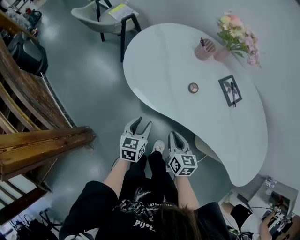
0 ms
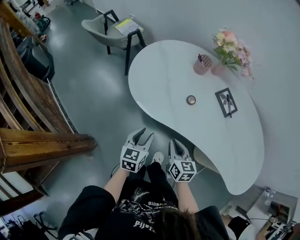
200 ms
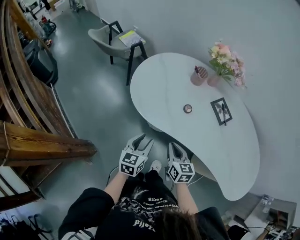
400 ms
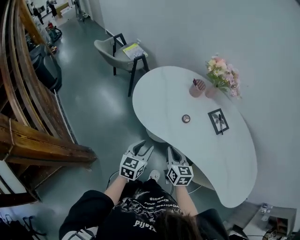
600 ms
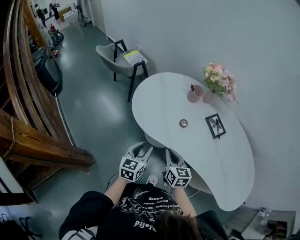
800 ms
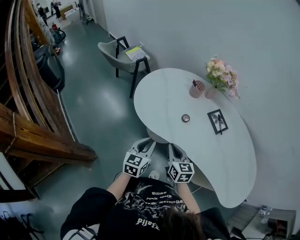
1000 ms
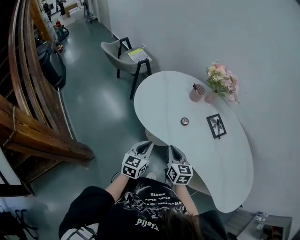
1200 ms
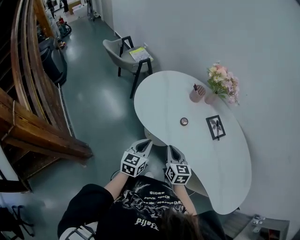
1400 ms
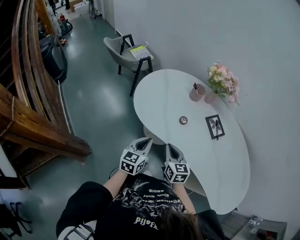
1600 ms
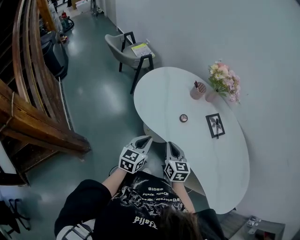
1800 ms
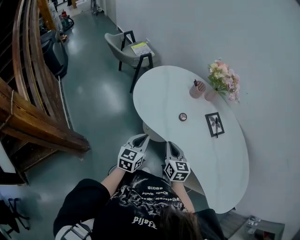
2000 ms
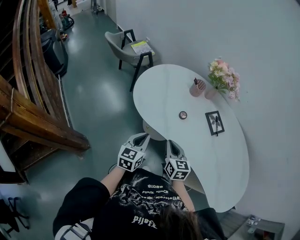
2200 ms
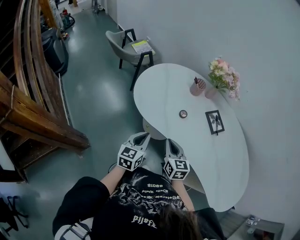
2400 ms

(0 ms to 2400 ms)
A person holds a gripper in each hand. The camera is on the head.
0 ms - 1200 ms: Both grippers move upward, some 10 cm. The left gripper closes.
1200 ms - 2400 ms: There are only small adjustments of the grippers.

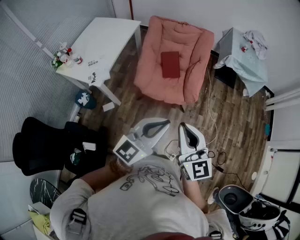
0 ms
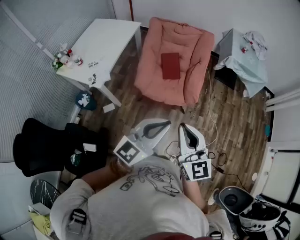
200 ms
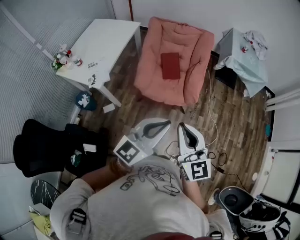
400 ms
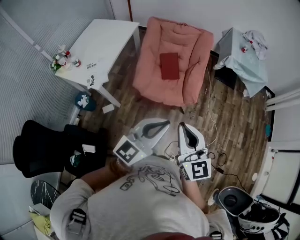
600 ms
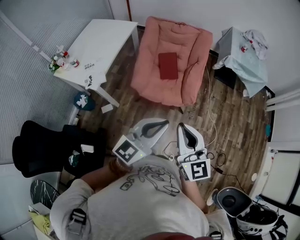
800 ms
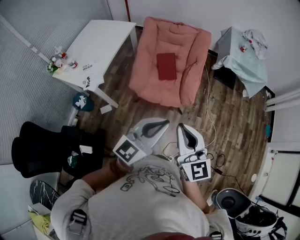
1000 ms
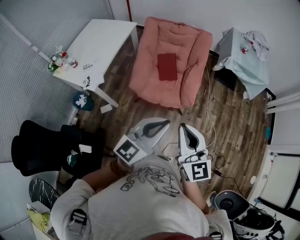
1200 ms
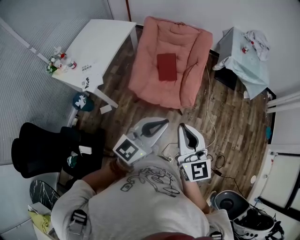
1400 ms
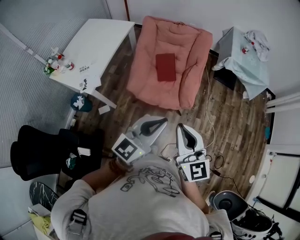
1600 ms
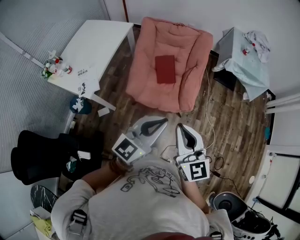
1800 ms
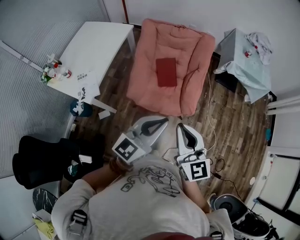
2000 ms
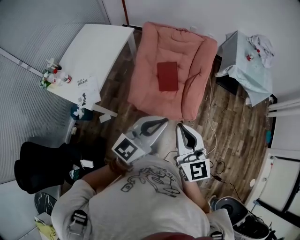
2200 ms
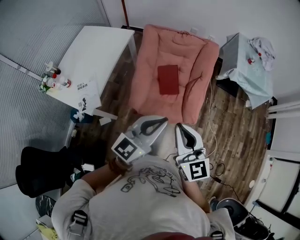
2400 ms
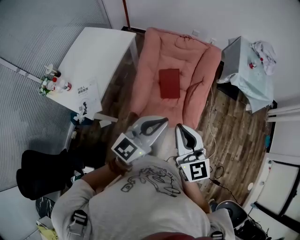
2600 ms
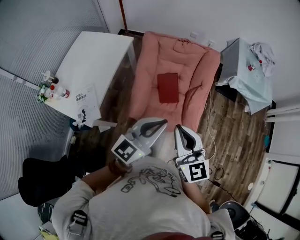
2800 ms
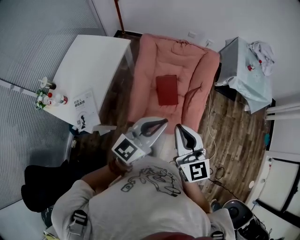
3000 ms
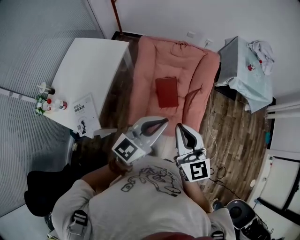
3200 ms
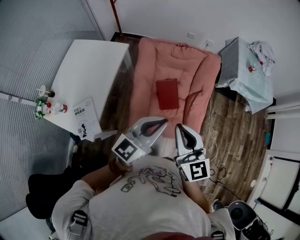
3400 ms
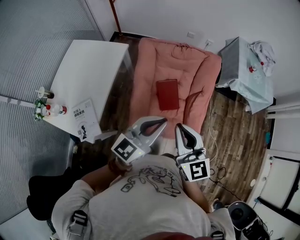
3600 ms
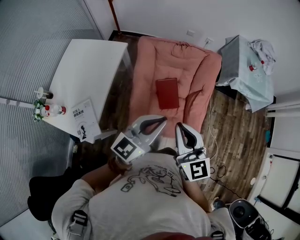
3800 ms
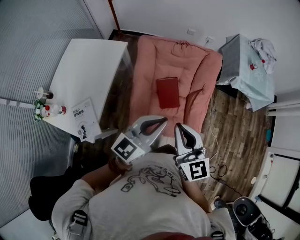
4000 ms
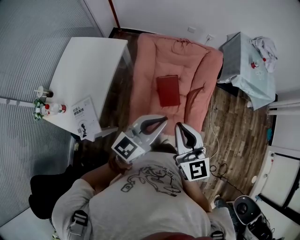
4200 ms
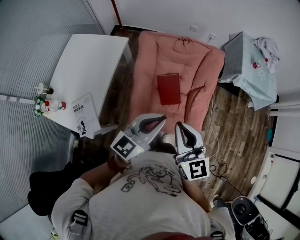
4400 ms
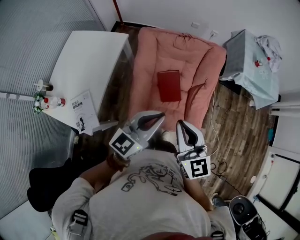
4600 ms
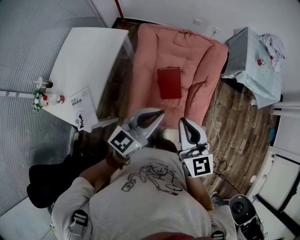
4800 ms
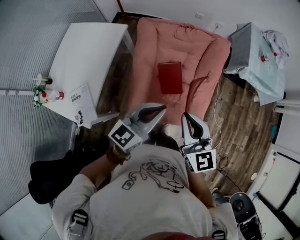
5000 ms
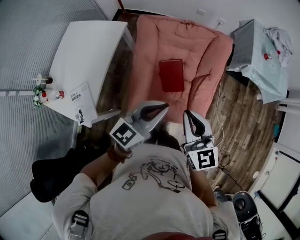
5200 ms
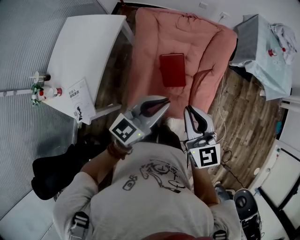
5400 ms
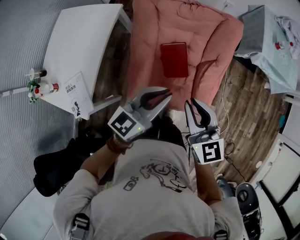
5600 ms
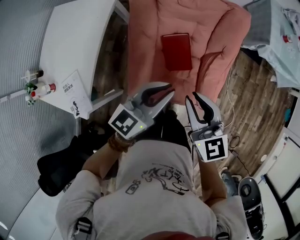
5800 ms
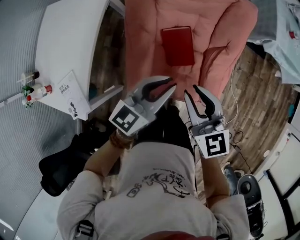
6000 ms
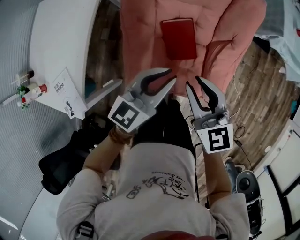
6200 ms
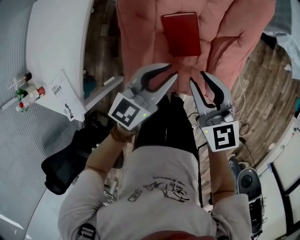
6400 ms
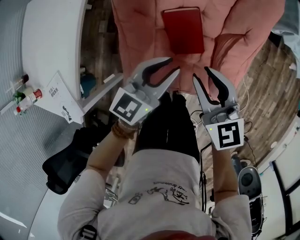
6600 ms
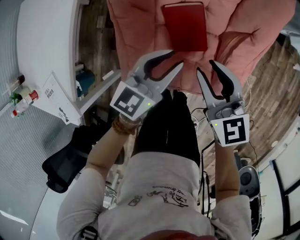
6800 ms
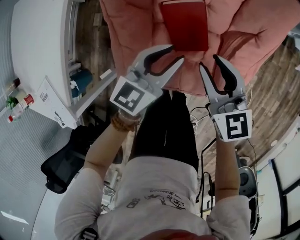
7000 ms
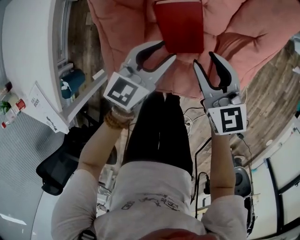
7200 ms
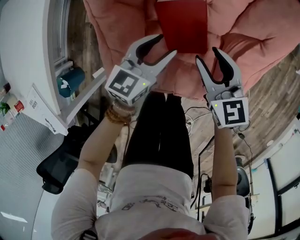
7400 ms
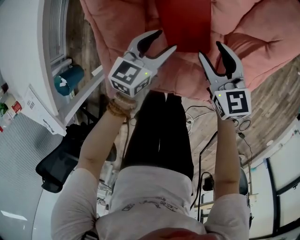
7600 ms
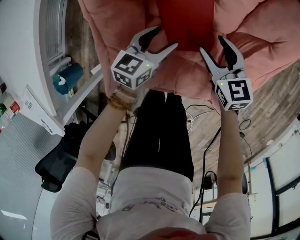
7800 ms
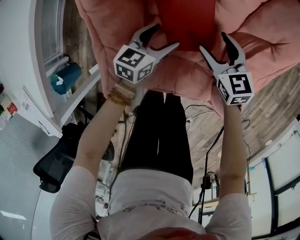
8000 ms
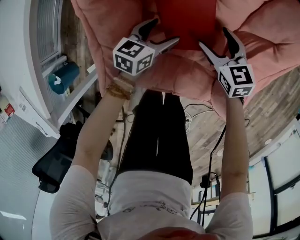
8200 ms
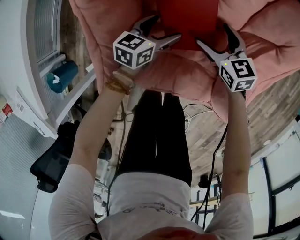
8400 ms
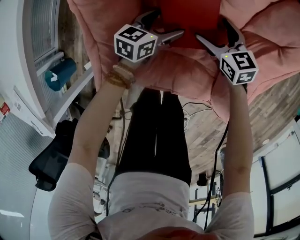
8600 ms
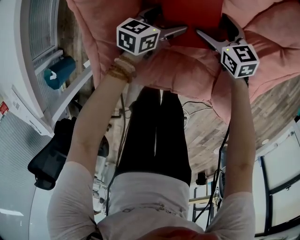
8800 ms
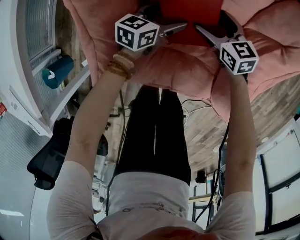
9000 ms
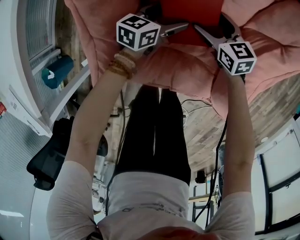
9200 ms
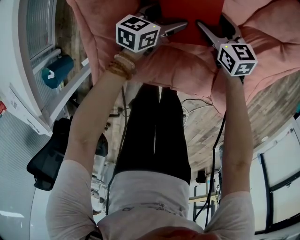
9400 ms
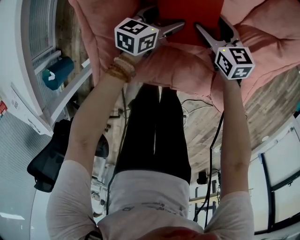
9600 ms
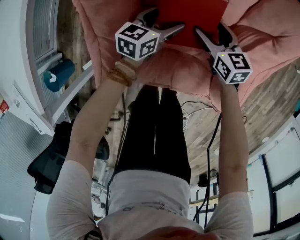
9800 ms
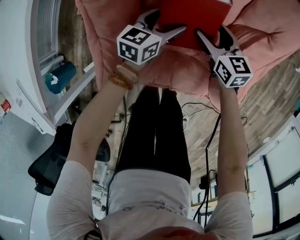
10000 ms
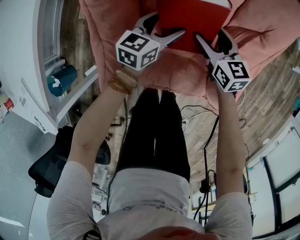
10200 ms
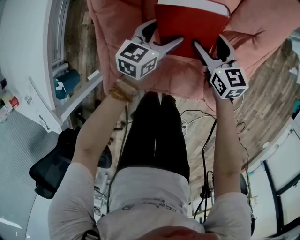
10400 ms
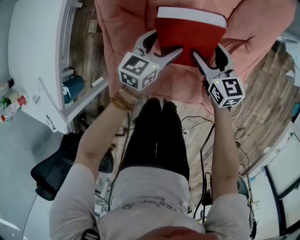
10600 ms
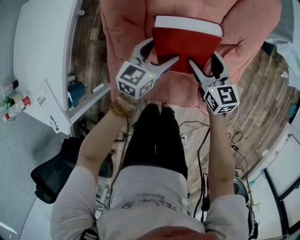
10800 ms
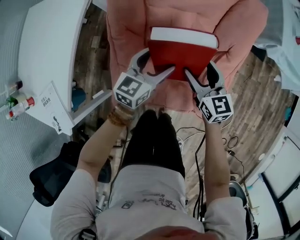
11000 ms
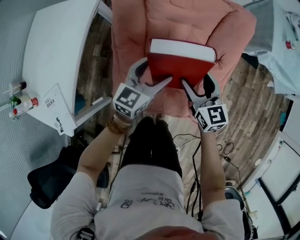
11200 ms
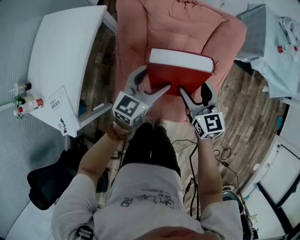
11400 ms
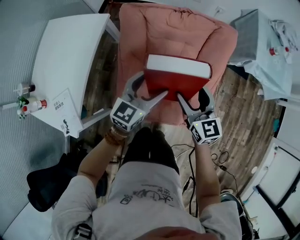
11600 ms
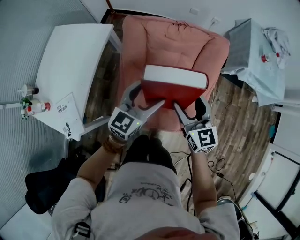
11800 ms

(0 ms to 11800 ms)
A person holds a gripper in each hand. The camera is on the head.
0 ms - 1400 ms: The two grippers go roughly 10 cm forward.
1400 ms - 3000 ms: Both grippers travel together forward and to the left, approximately 35 cm.
3000 ms - 4400 ms: Both grippers travel together forward, approximately 5 cm.
4400 ms - 6000 ms: The two grippers go some 25 cm downward and forward.
6000 ms - 7400 ms: The left gripper travels downward by approximately 35 cm. The right gripper is displaced downward and forward by approximately 35 cm.
7400 ms - 8800 ms: Both grippers travel together downward, approximately 20 cm. The right gripper opens its fingers; the left gripper opens up.
8800 ms - 10400 ms: The grippers both shift upward by roughly 15 cm.
10400 ms - 11800 ms: Both grippers travel together upward, about 40 cm. The left gripper turns by roughly 20 degrees.

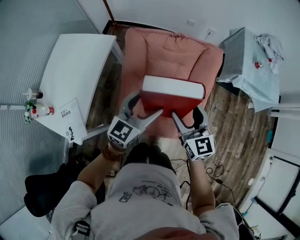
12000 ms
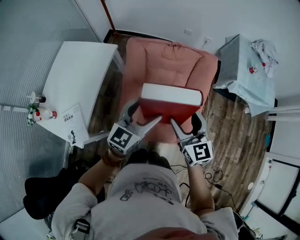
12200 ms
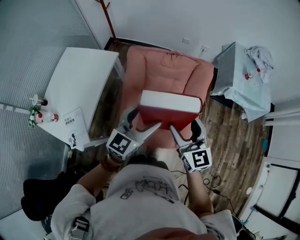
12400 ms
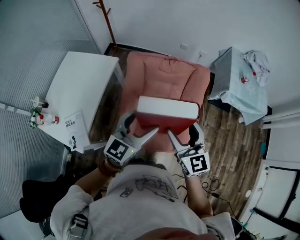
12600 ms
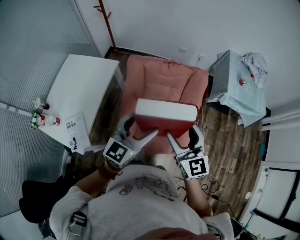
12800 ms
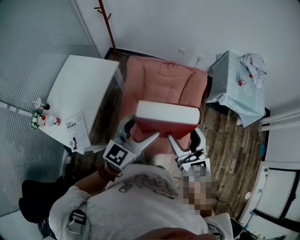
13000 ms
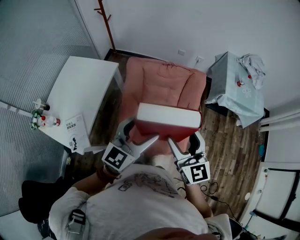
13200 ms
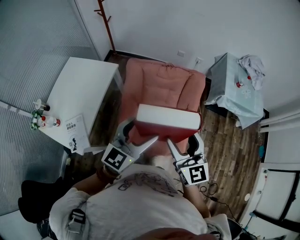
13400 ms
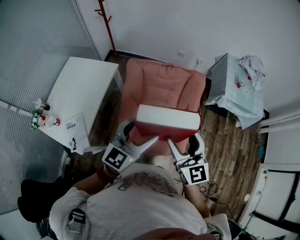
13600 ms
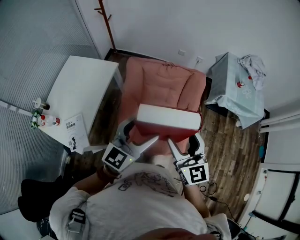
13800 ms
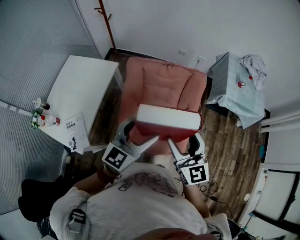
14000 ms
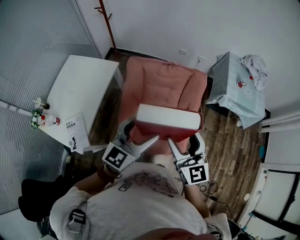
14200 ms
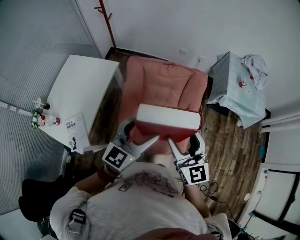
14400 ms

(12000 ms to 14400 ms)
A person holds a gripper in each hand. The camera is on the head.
12000 ms - 13200 ms: Both grippers move upward and backward, some 20 cm.
13200 ms - 14400 ms: The grippers make only small movements.

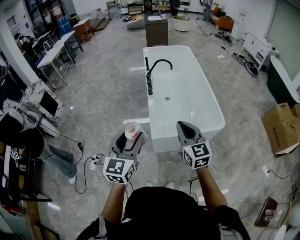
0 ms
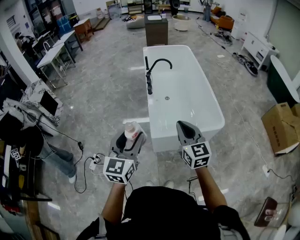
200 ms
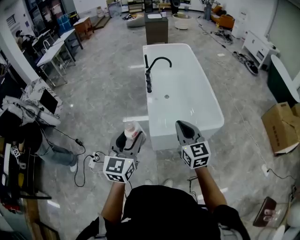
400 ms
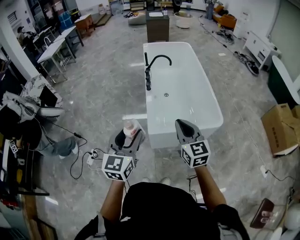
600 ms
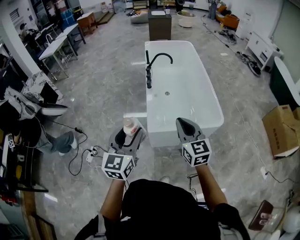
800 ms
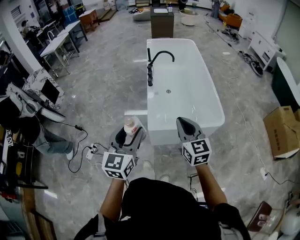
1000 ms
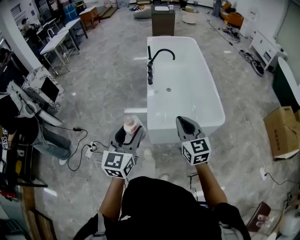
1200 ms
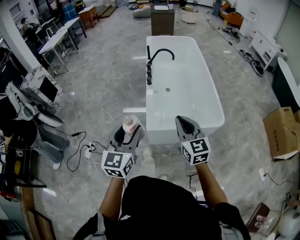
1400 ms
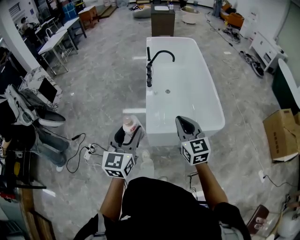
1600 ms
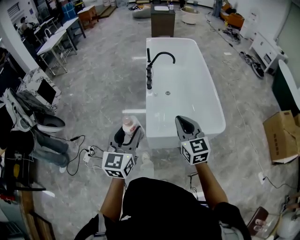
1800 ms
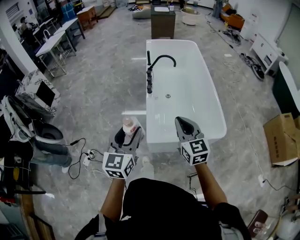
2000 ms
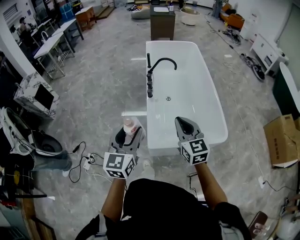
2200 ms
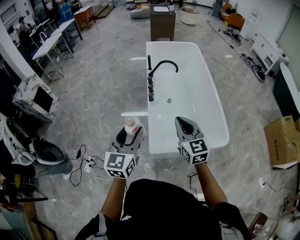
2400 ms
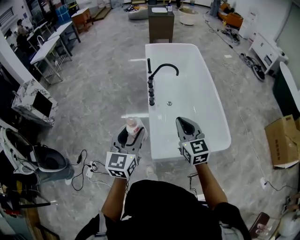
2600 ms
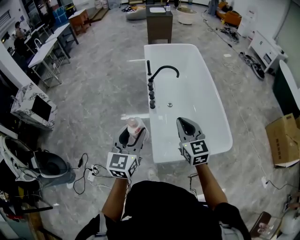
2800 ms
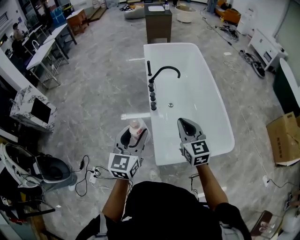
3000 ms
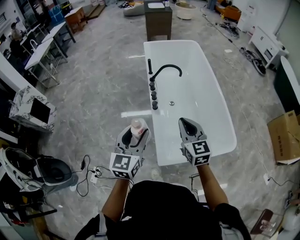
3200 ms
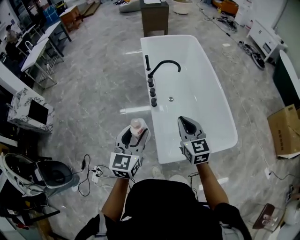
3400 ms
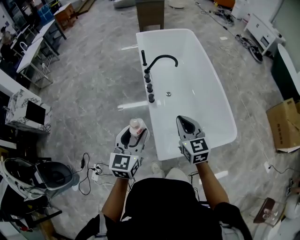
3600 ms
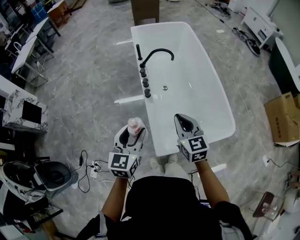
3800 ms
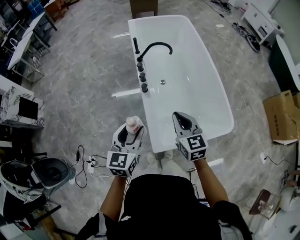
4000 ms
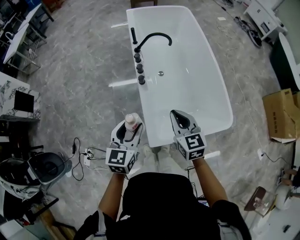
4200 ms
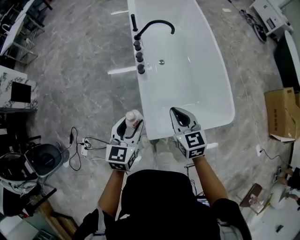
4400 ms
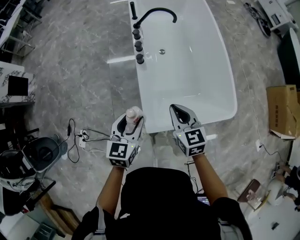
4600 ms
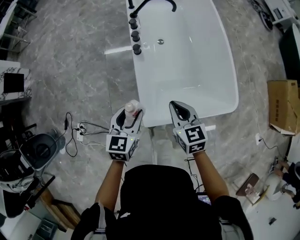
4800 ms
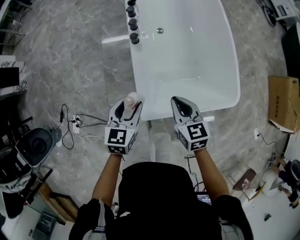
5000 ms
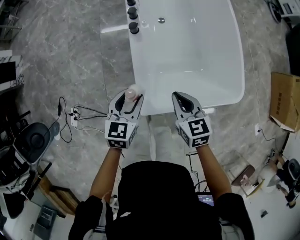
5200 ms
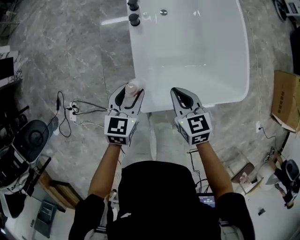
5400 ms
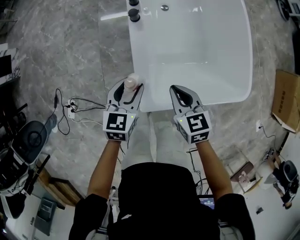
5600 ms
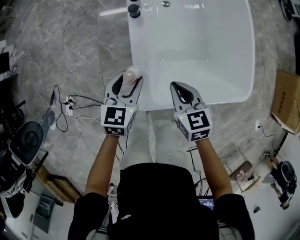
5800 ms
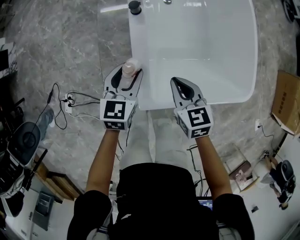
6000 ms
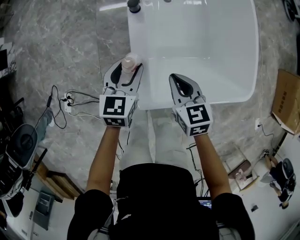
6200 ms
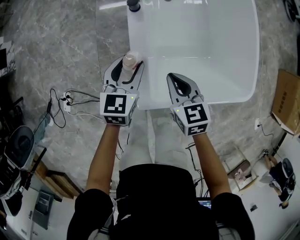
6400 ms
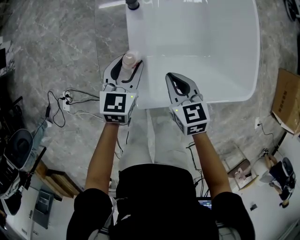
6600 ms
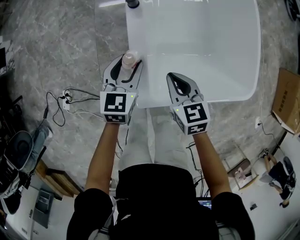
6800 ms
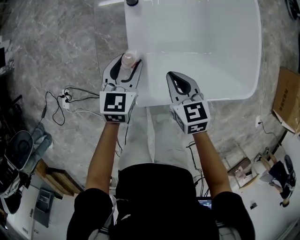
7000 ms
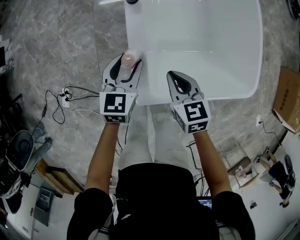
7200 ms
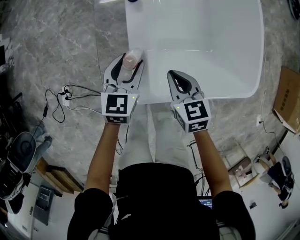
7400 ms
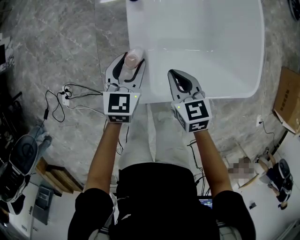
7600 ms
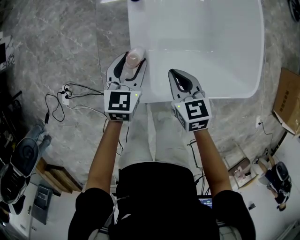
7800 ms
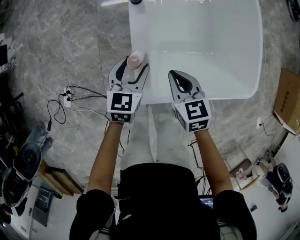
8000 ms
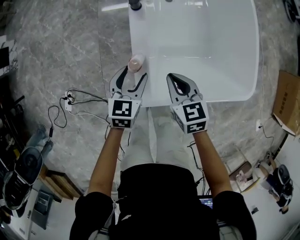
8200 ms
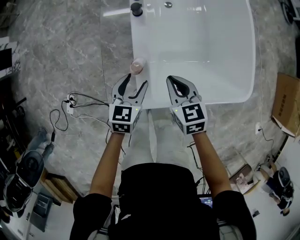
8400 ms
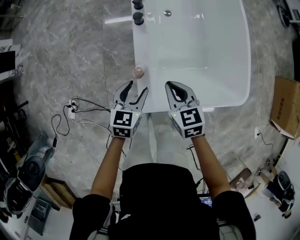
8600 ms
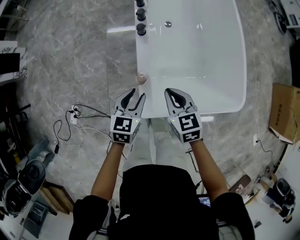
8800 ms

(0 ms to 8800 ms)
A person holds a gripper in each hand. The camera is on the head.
0 ms - 1400 ms: The right gripper ends up roughly 5 cm from where it was; the left gripper changes place by approximately 5 cm.
1400 ms - 3000 ms: Both grippers move forward, roughly 30 cm.
3000 ms - 4400 ms: Both grippers move downward, approximately 15 cm.
4400 ms - 5800 ms: Both grippers travel together downward, about 20 cm.
5800 ms - 7400 ms: The grippers stay close to where they were, moving slightly.
7400 ms - 8800 ms: The right gripper is displaced upward by approximately 10 cm. The left gripper travels upward and backward by about 10 cm.
